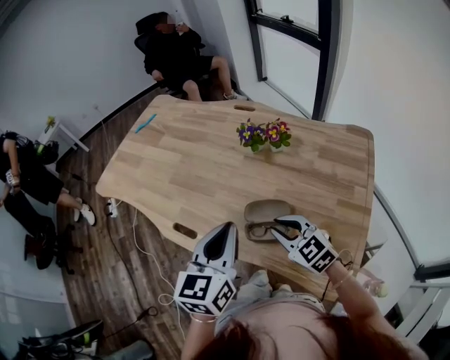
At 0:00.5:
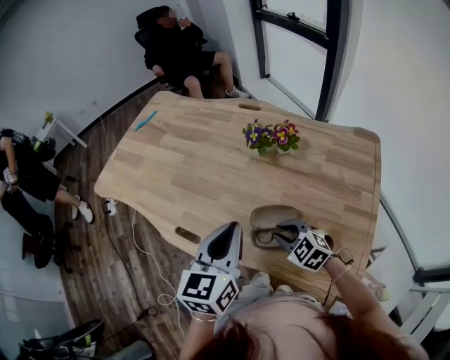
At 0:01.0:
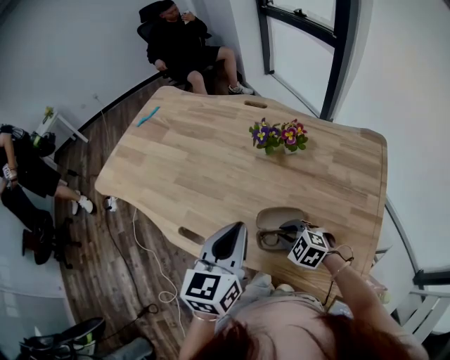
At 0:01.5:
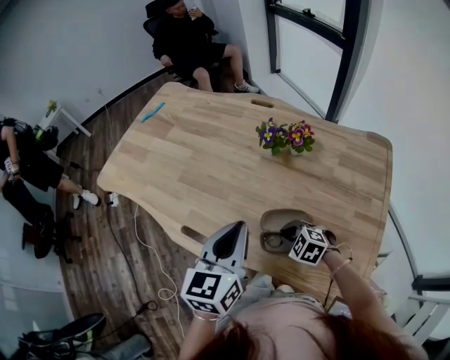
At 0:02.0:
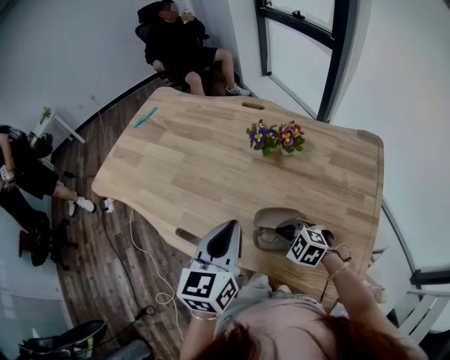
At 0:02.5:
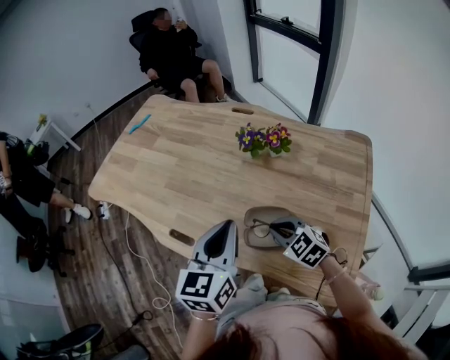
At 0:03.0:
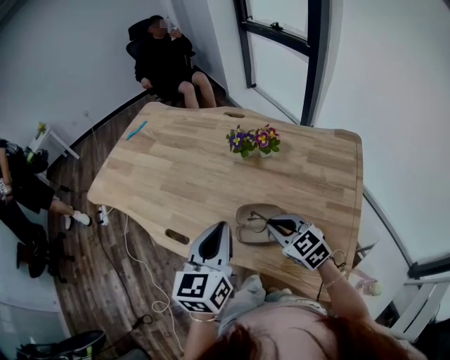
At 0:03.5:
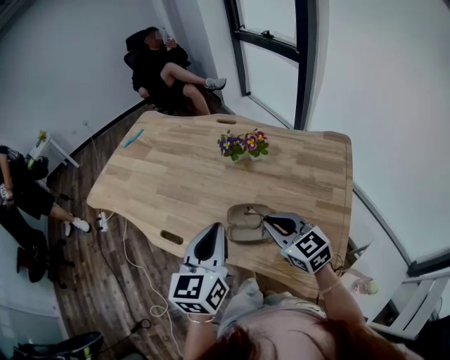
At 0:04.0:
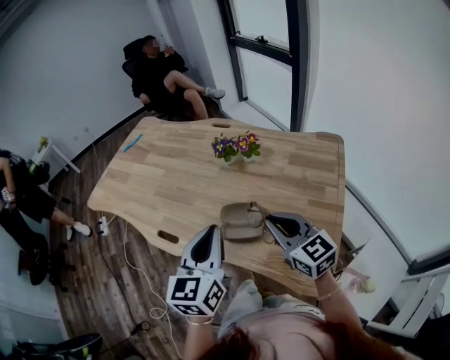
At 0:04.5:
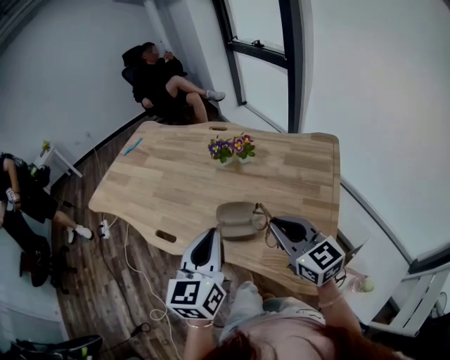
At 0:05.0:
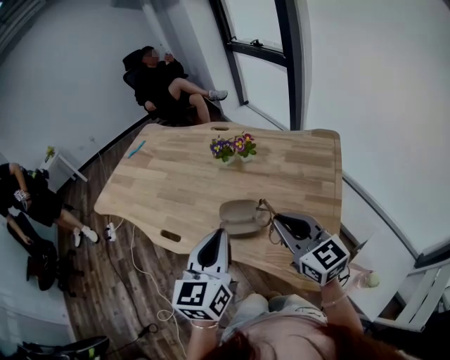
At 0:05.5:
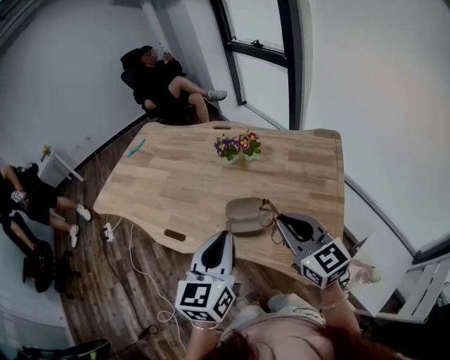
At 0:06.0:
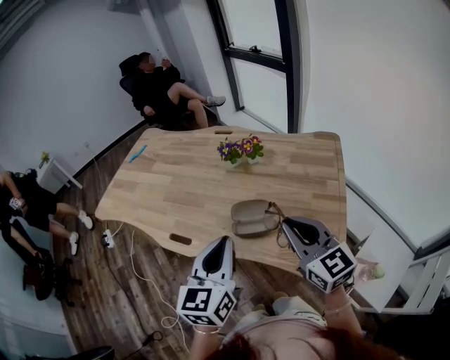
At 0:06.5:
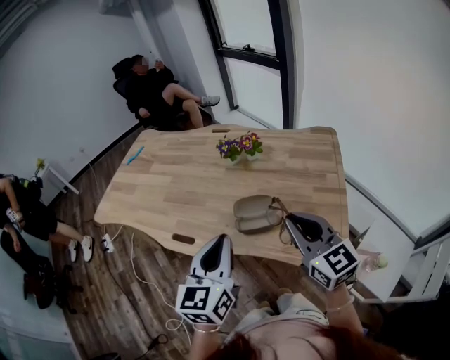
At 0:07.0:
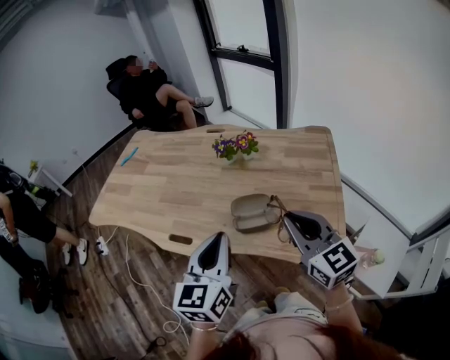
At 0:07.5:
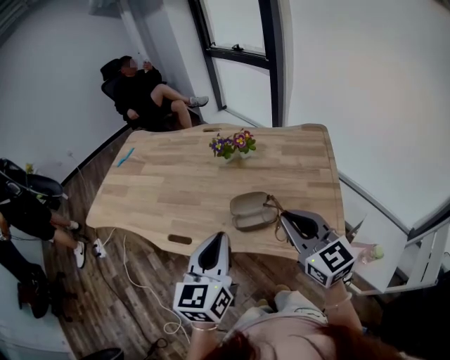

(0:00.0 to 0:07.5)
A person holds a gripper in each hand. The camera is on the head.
0:00.0 - 0:02.0: The right gripper goes about 10 cm downward, and turns by approximately 30 degrees. The left gripper heads forward, covering roughly 5 cm.
0:02.0 - 0:04.0: The left gripper travels backward, upward and to the right by approximately 15 cm. Meanwhile the right gripper travels upward by roughly 20 cm, and points its fingers approximately 40 degrees further upward.
0:04.0 - 0:05.5: The left gripper ends up approximately 5 cm from where it was, while the right gripper is displaced backward by approximately 5 cm.
0:05.5 - 0:07.5: The grippers both shift to the left by approximately 5 cm.

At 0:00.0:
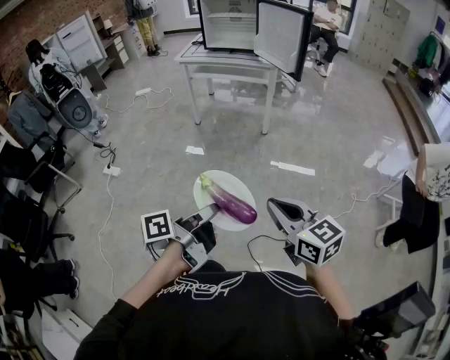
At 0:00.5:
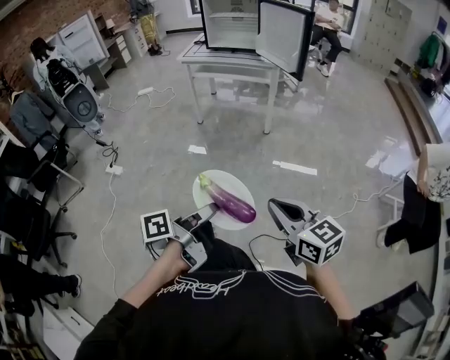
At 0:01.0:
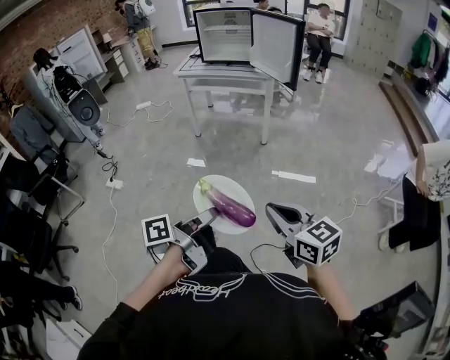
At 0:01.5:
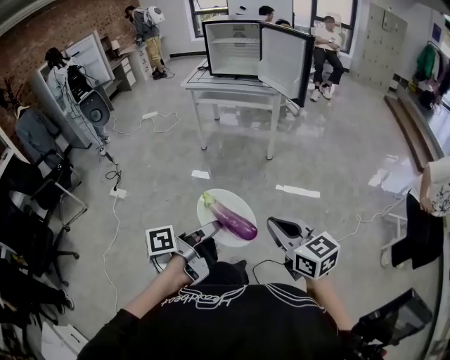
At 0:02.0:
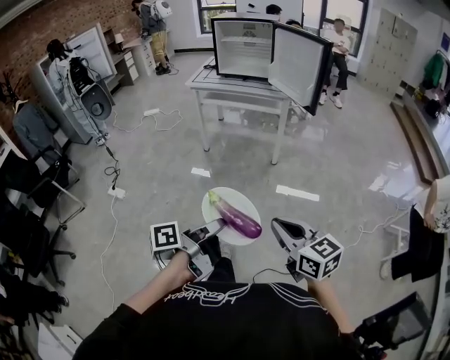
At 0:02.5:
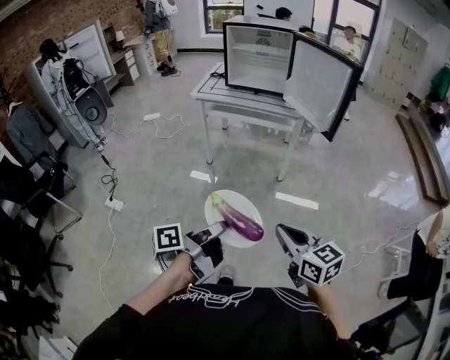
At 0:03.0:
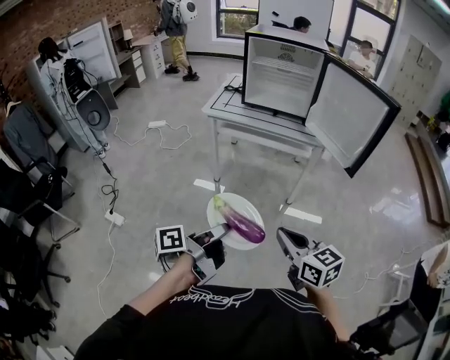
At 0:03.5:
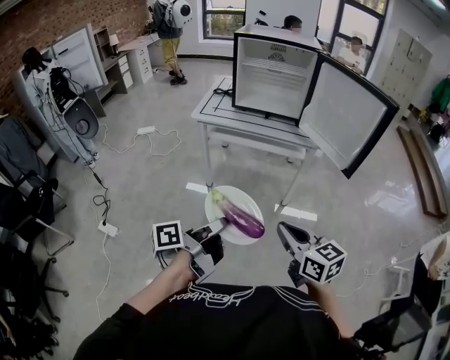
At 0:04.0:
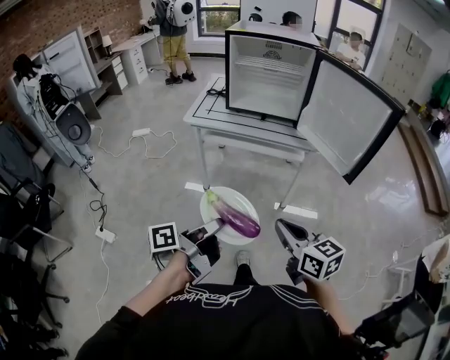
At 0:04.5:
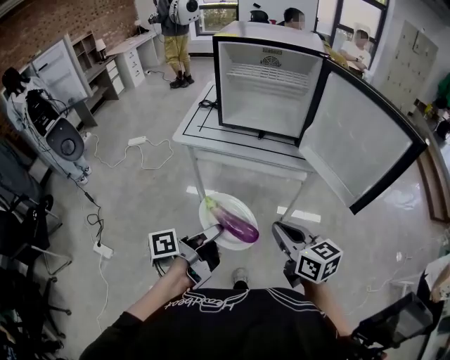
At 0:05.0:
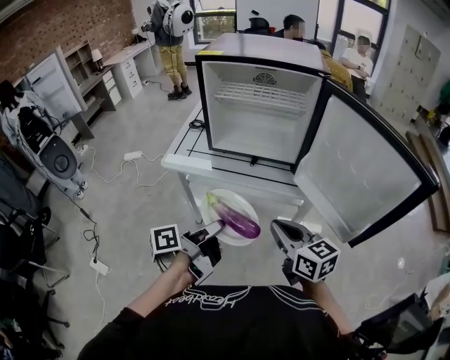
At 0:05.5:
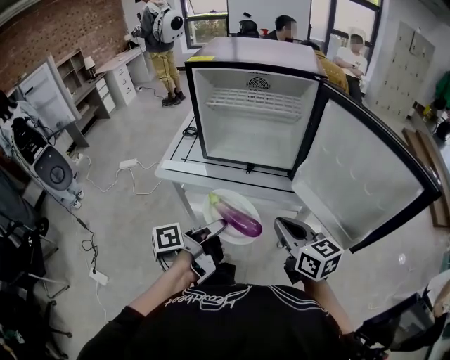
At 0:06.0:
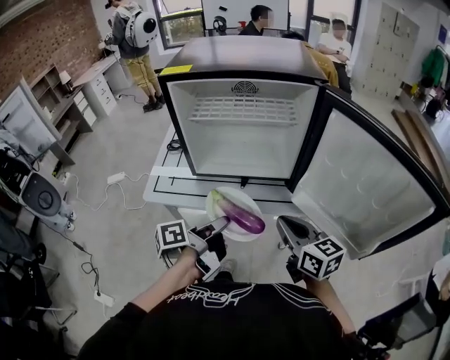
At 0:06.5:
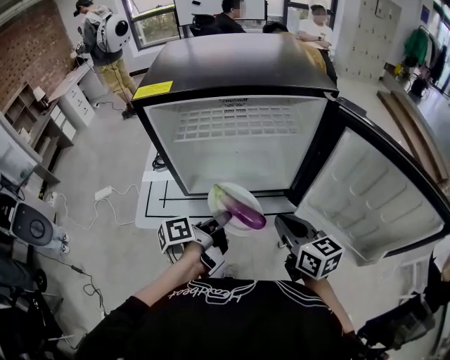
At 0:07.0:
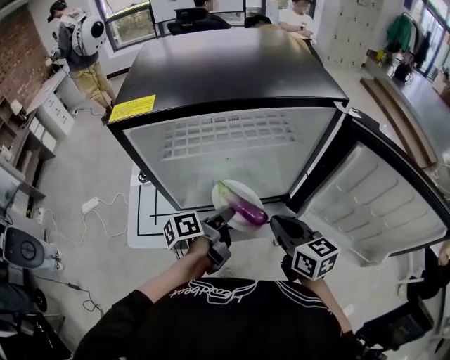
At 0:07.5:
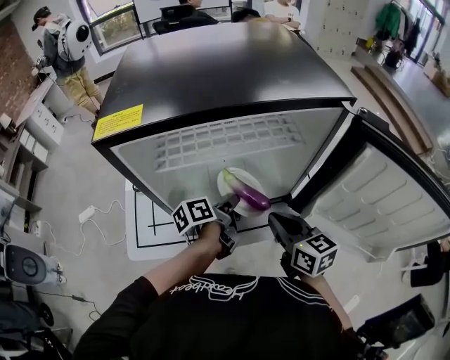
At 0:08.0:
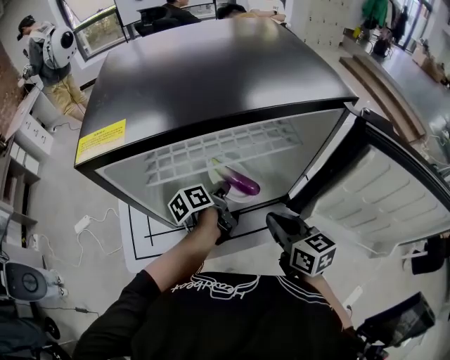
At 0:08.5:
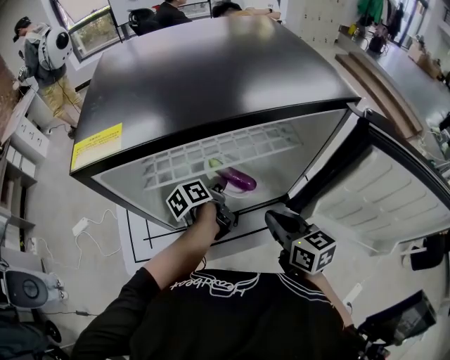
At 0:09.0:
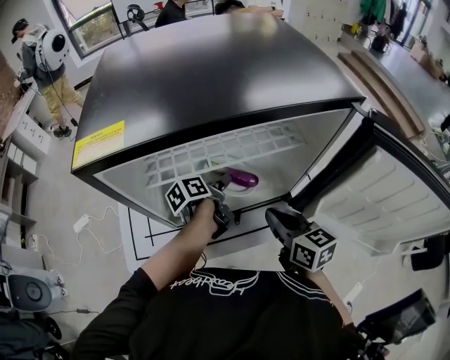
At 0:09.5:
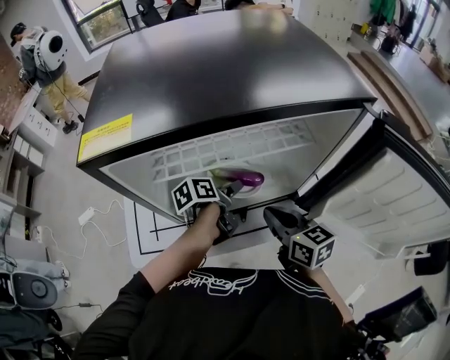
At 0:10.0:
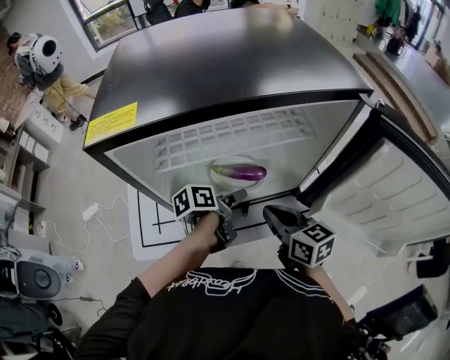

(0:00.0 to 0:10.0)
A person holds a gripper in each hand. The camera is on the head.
0:00.0 - 0:02.0: The right gripper ends up some 10 cm from where it was.
0:02.0 - 0:04.0: The right gripper ends up roughly 50 cm from where it was.
0:04.0 - 0:06.0: The right gripper shifts by approximately 40 cm.
0:06.0 - 0:08.0: The right gripper ends up roughly 20 cm from where it was.

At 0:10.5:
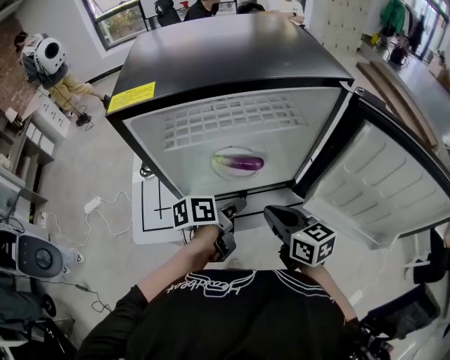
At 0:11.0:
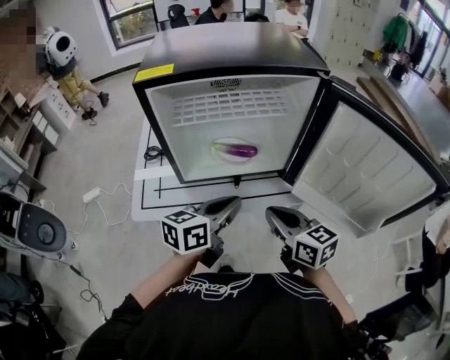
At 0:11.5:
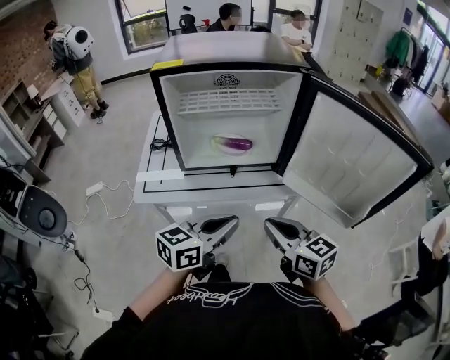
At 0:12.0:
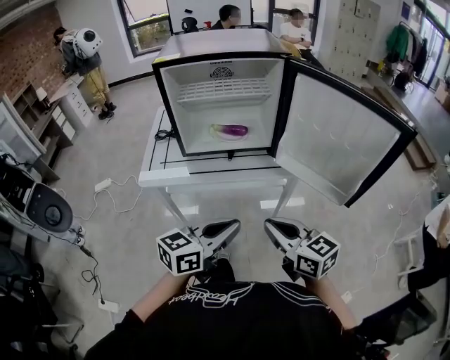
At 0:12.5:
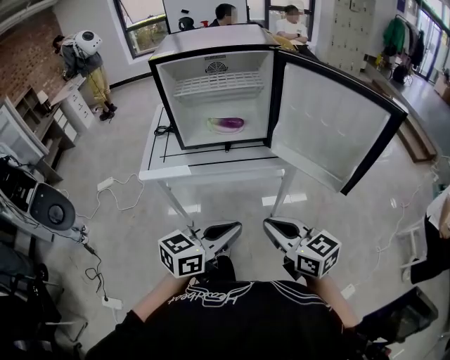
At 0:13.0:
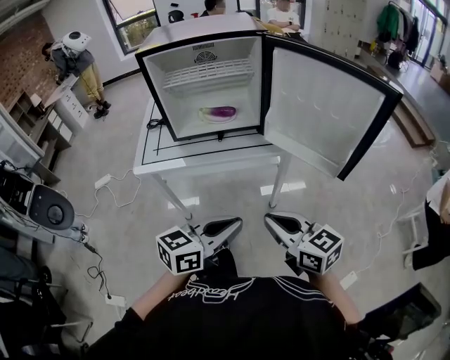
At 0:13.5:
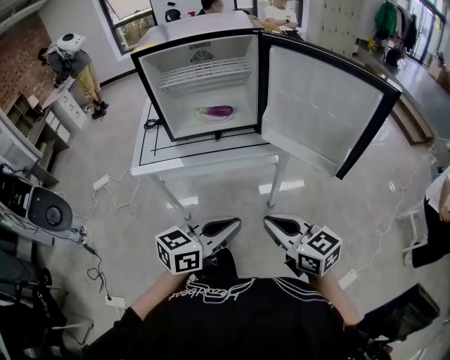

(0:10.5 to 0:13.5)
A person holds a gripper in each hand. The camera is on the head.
0:10.5 - 0:12.0: The right gripper ends up some 30 cm from where it was.
0:12.0 - 0:13.5: The right gripper ends up some 5 cm from where it was.

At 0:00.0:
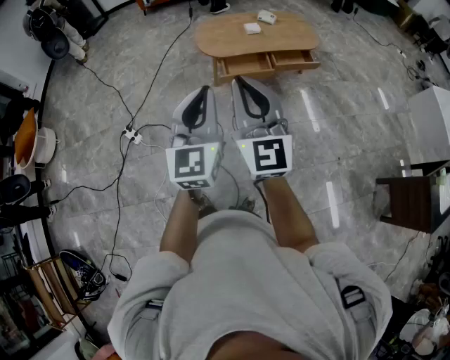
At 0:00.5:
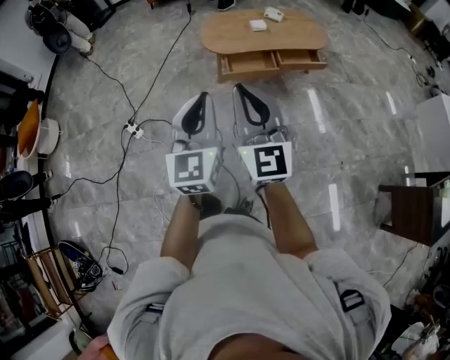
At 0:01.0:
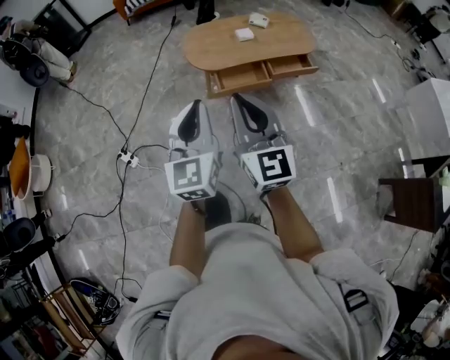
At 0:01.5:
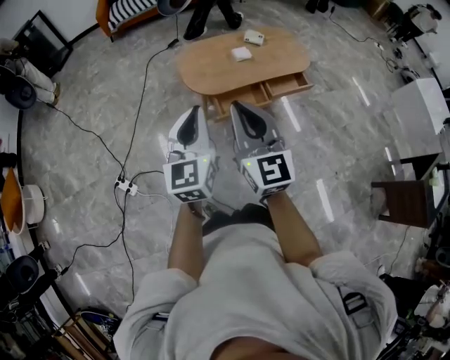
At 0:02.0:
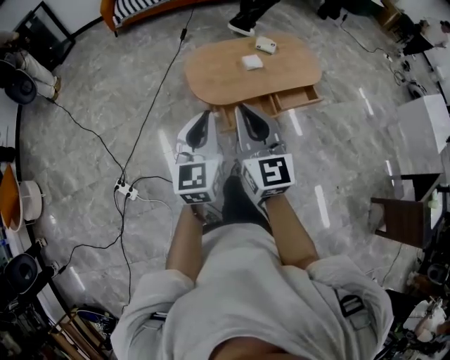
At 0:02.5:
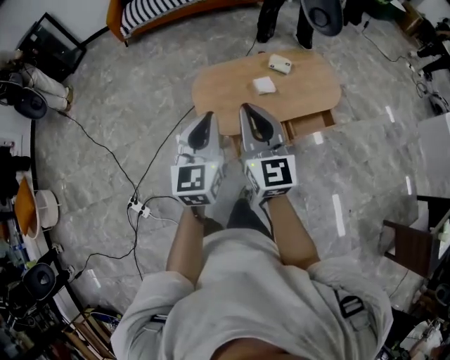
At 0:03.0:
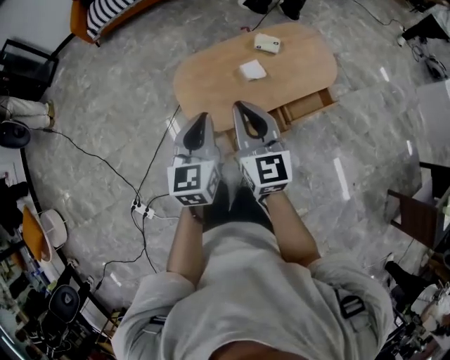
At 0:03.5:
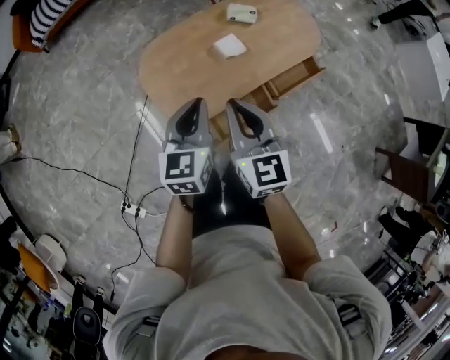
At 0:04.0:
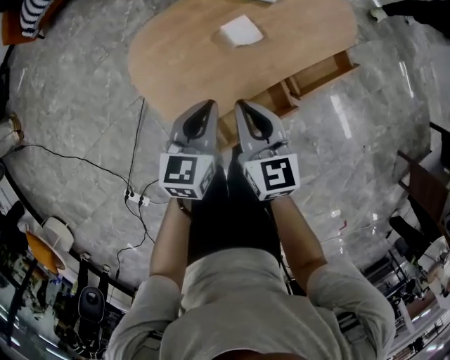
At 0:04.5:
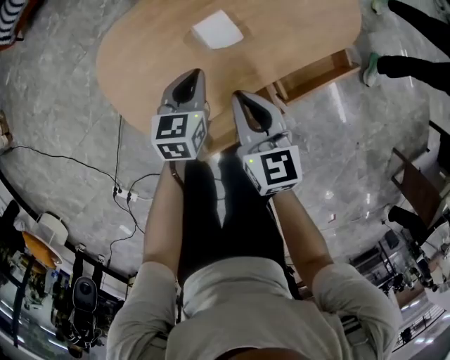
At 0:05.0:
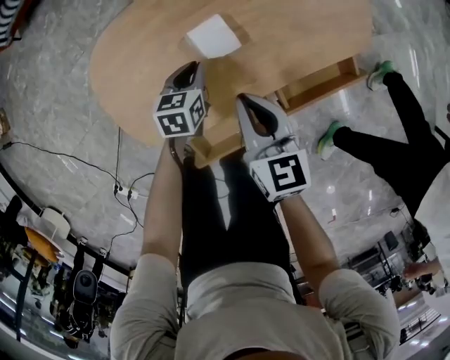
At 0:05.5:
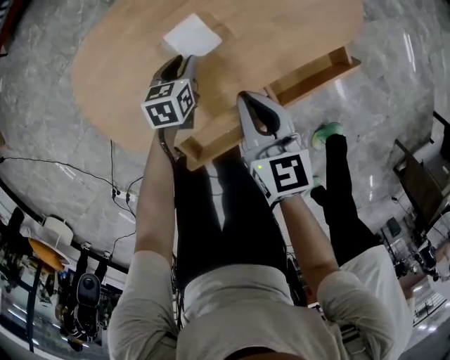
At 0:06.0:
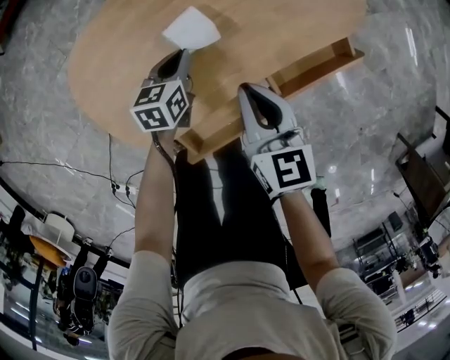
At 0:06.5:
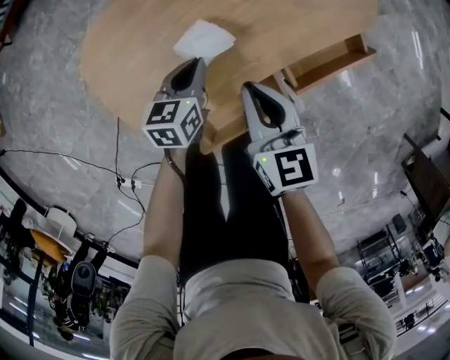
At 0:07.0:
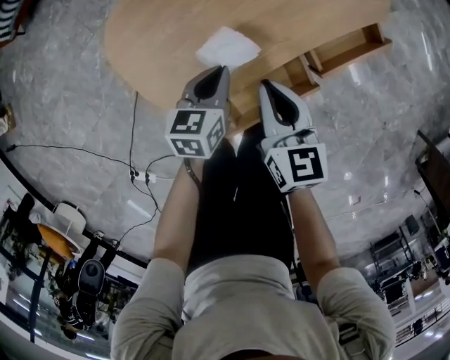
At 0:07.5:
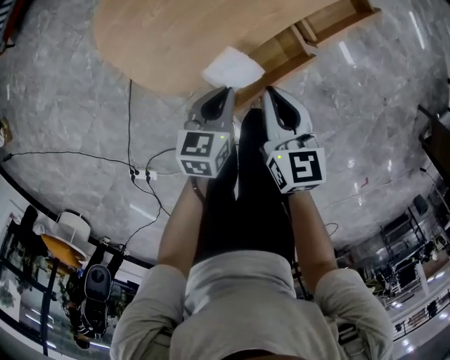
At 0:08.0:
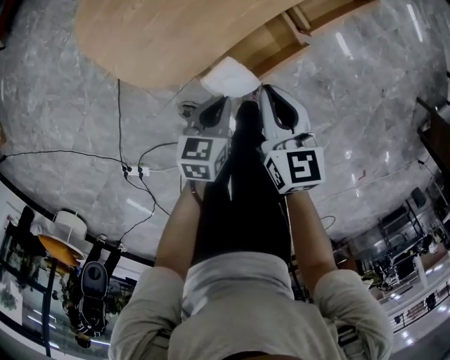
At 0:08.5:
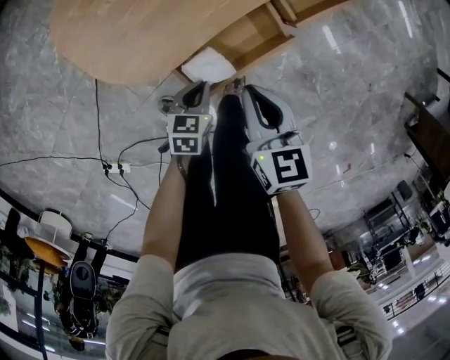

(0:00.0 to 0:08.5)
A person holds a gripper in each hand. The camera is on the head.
0:00.0 - 0:02.0: Both grippers move forward, some 40 cm.
0:02.0 - 0:04.0: The two grippers travel together, forward, some 40 cm. The grippers both shift downward by some 35 cm. The left gripper swivels some 40 degrees, while the right gripper swivels some 30 degrees.
0:04.0 - 0:06.5: The left gripper travels downward and forward by roughly 25 cm, and opens, then closes again. The right gripper is displaced downward, to the right and forward by some 15 cm.
0:06.5 - 0:08.5: Both grippers travel together backward, some 25 cm.
